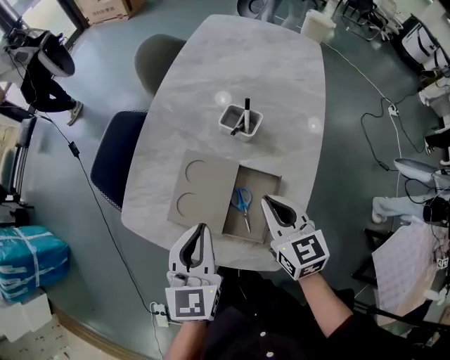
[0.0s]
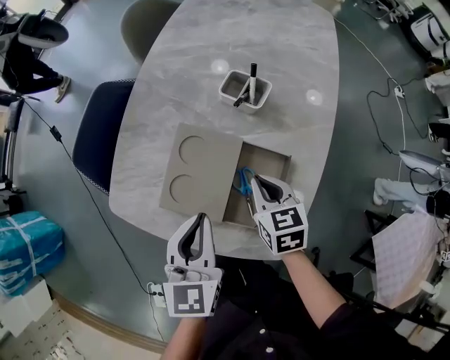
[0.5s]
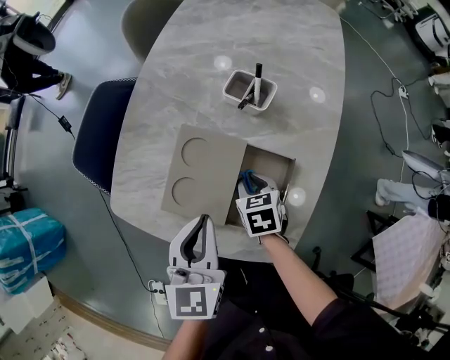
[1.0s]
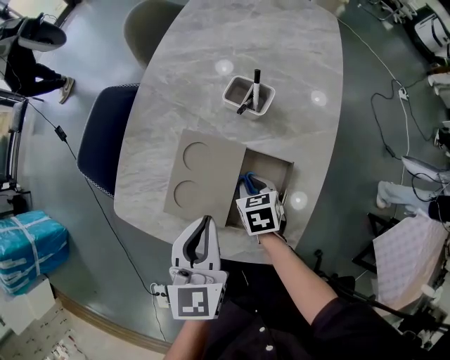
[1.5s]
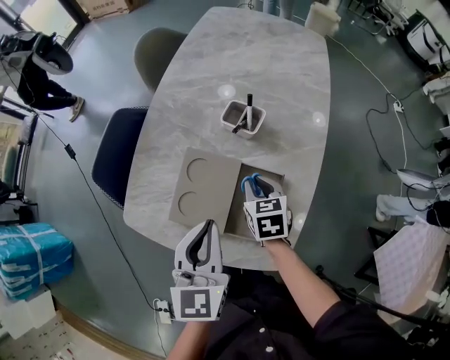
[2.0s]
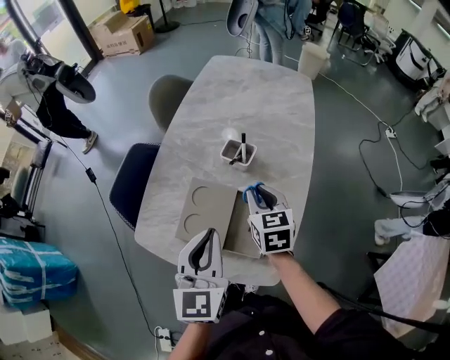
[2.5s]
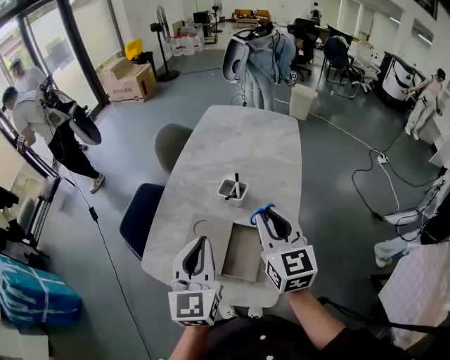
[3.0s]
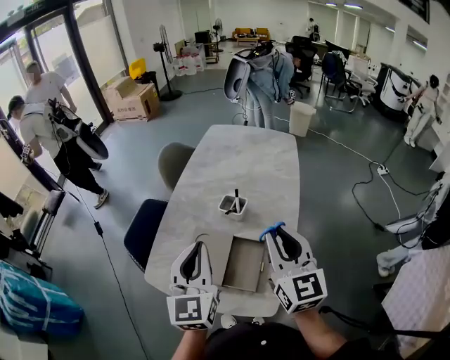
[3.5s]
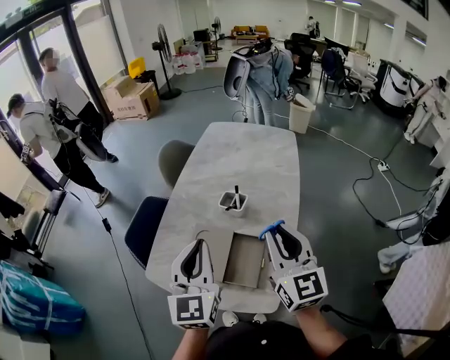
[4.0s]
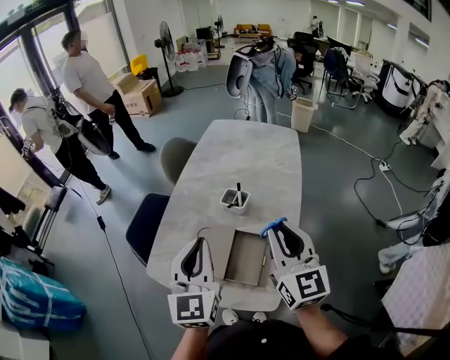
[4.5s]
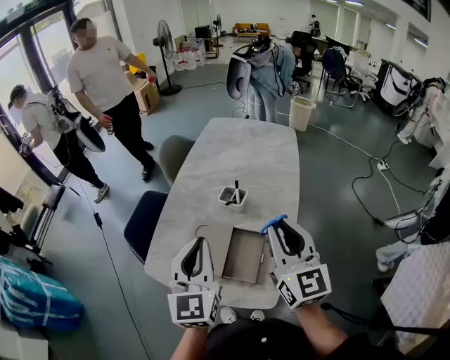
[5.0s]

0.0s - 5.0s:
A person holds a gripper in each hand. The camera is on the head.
0.0s - 2.5s: The right gripper is displaced forward by approximately 5 cm, and moves about 20 cm downward and comes back; the left gripper is displaced upward by some 10 cm.
2.5s - 5.0s: The left gripper heads upward, covering roughly 10 cm. The right gripper is displaced upward and backward by some 25 cm, and tips its fingers upward by some 40 degrees.

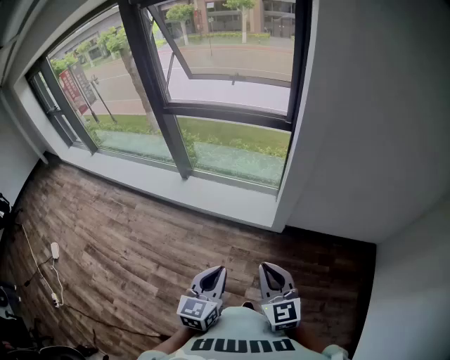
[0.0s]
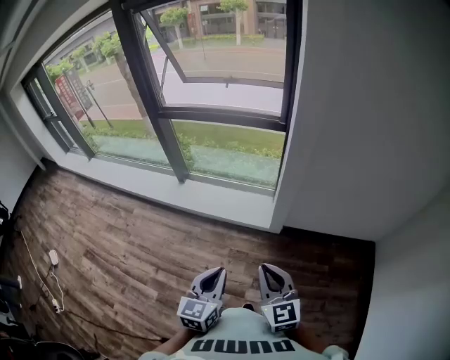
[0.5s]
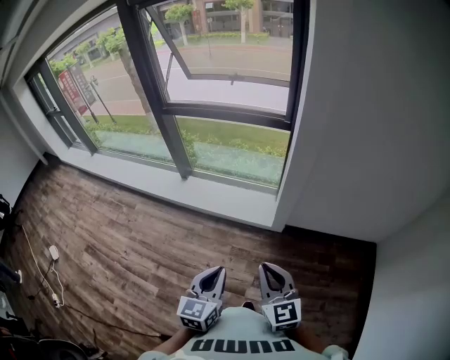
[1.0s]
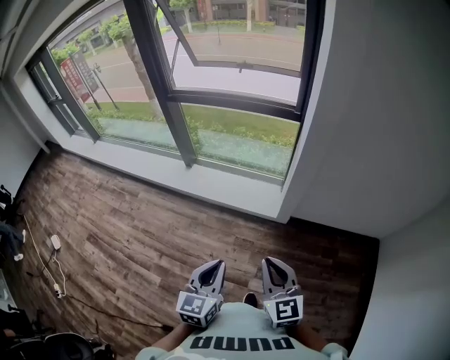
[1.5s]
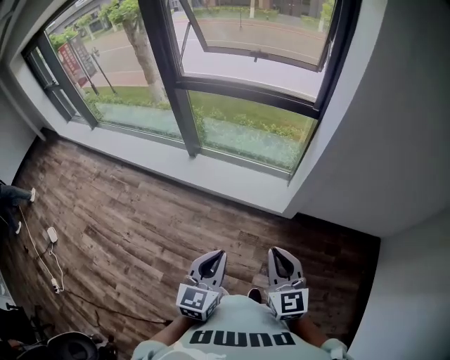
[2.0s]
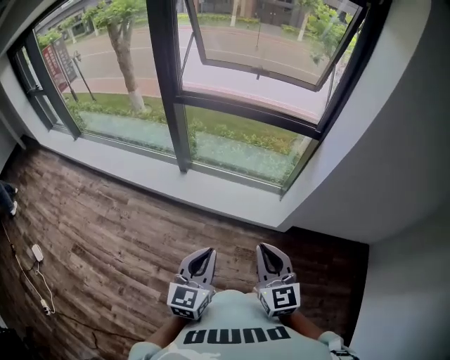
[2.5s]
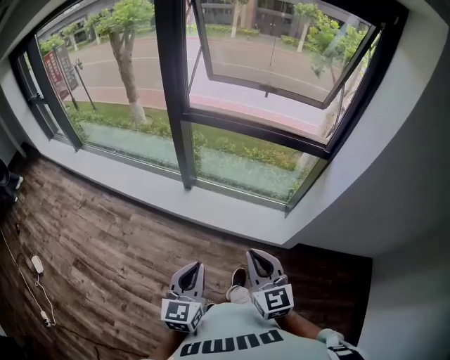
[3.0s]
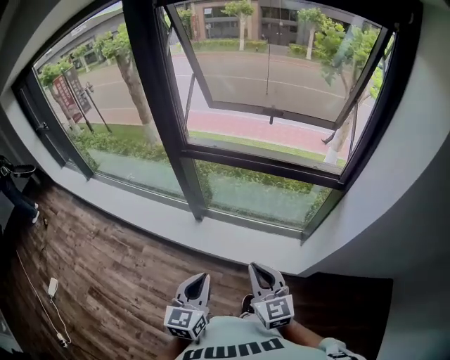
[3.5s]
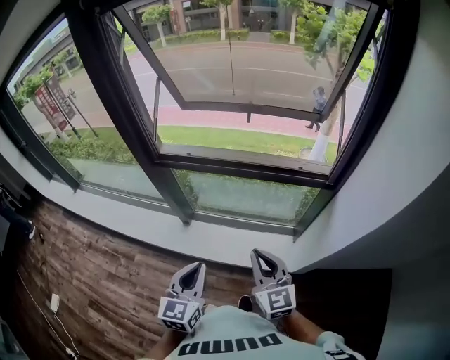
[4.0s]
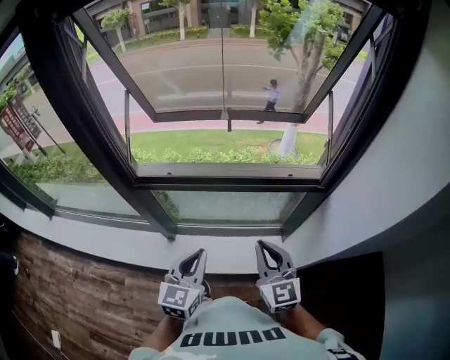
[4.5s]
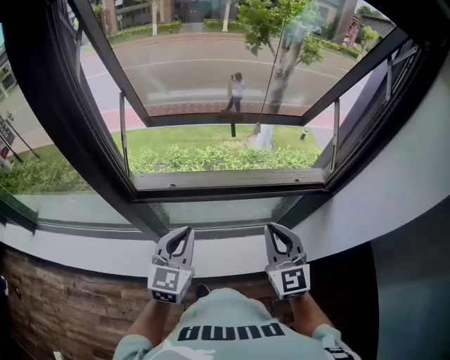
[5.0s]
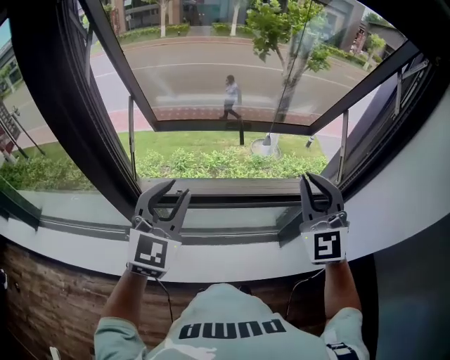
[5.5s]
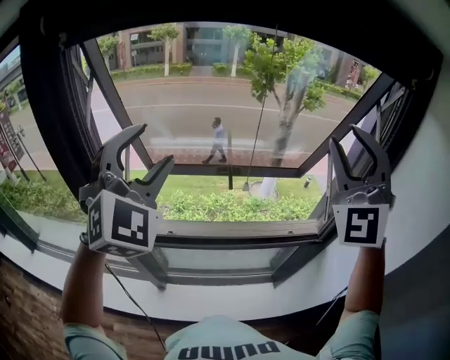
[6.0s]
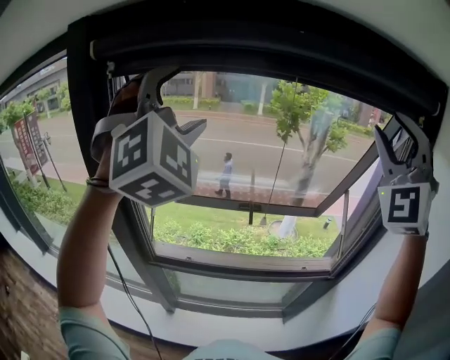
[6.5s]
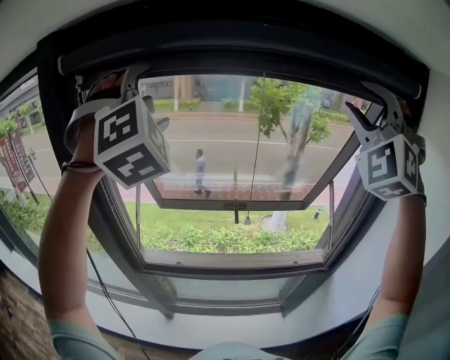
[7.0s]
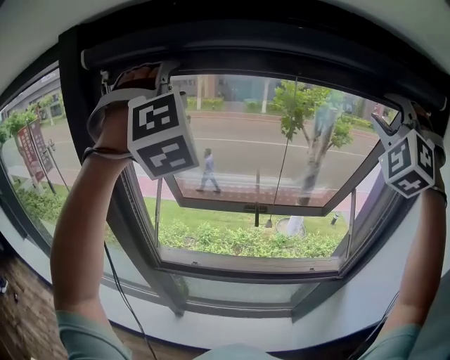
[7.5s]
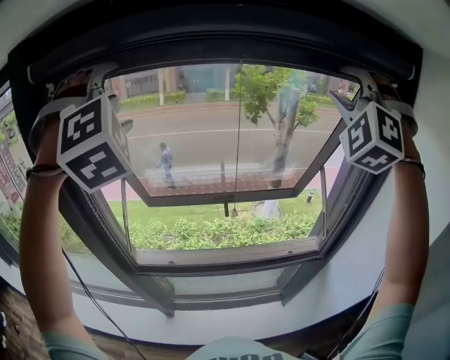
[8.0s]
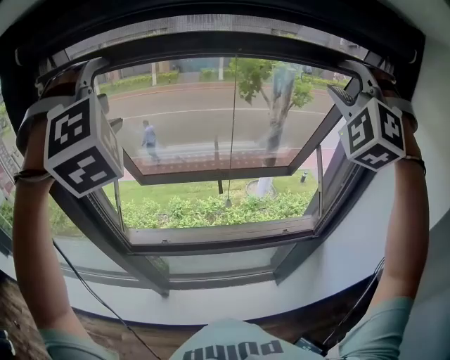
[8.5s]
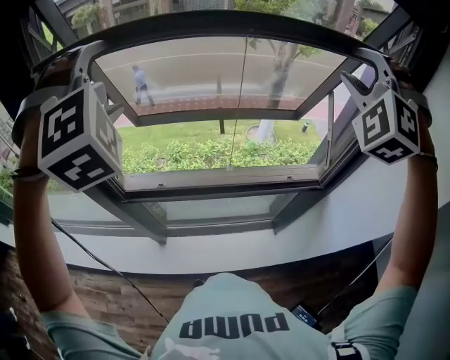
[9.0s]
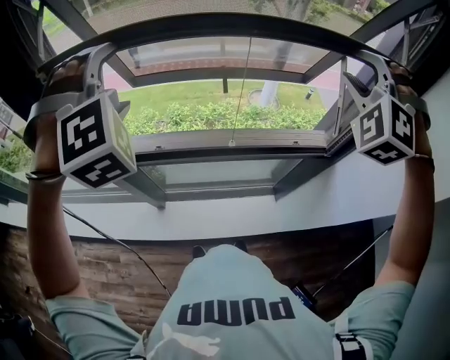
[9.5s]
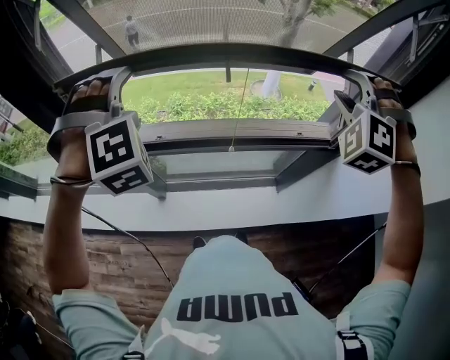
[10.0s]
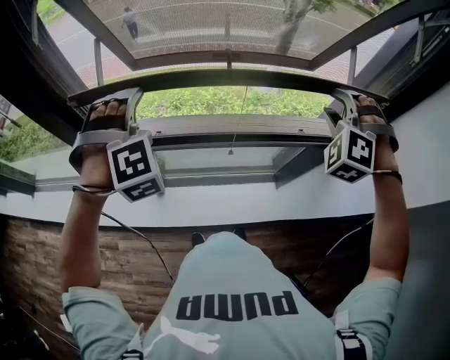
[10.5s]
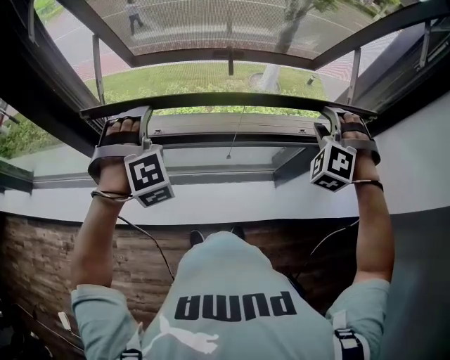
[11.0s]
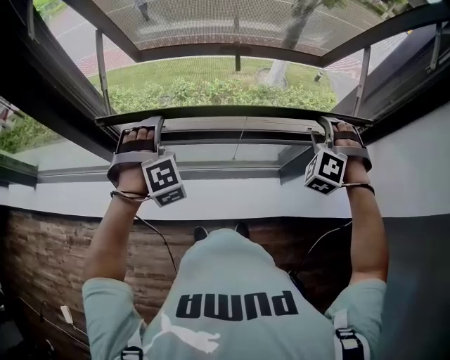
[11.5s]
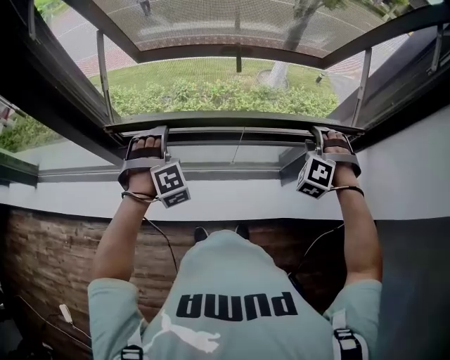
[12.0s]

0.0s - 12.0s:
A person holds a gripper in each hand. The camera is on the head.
0.0s - 2.0s: The two grippers go approximately 10 cm to the left and forward.
2.0s - 4.0s: The two grippers travel together, forward, approximately 50 cm.
4.0s - 6.0s: The right gripper is displaced upward and forward by some 50 cm, rotates around the line of its fingers by some 60 degrees, counterclockwise from behind, and opens its fingers. Meanwhile the left gripper is displaced forward, upward and to the left by roughly 60 cm, twists roughly 60 degrees clockwise, seen from behind, and opens.
6.0s - 8.0s: The right gripper shifts about 15 cm upward, forward and to the right, and changes its angle by about 40 degrees. The left gripper moves upward and forward, some 15 cm, and changes its angle by approximately 40 degrees.
8.0s - 10.0s: Both grippers travel together downward, approximately 35 cm. The right gripper angles its fingers downward, by some 30 degrees, while the left gripper rotates approximately 30 degrees.
10.0s - 12.0s: The grippers both shift downward by some 25 cm.

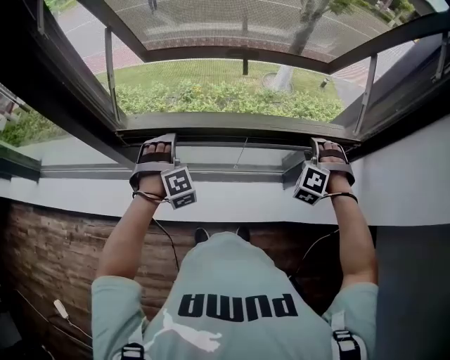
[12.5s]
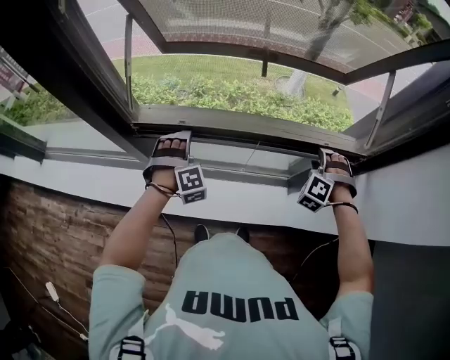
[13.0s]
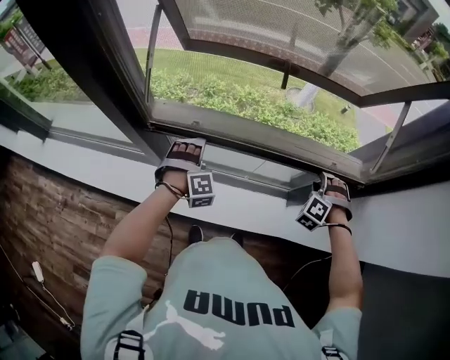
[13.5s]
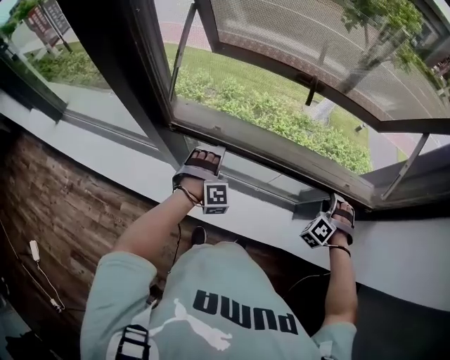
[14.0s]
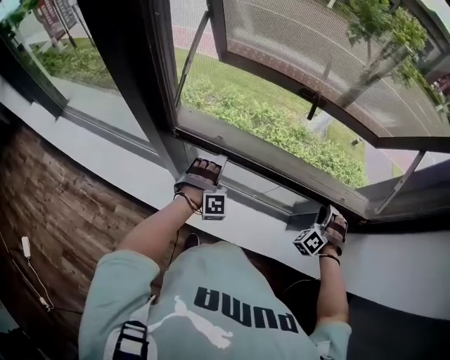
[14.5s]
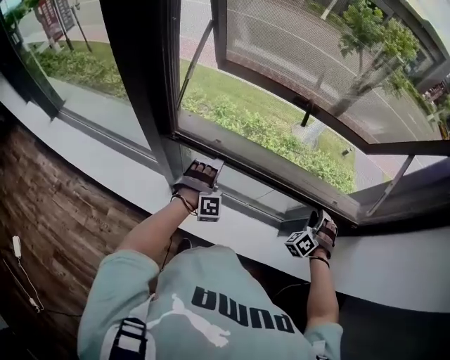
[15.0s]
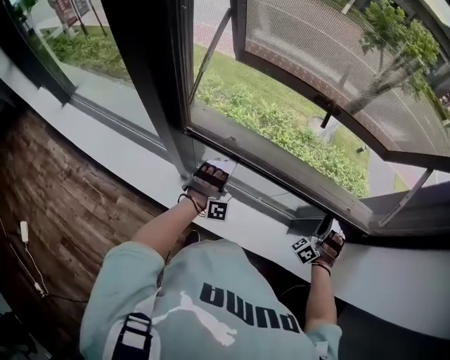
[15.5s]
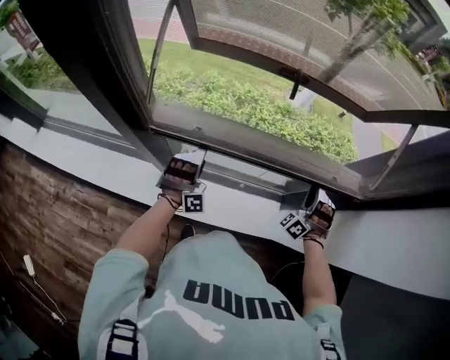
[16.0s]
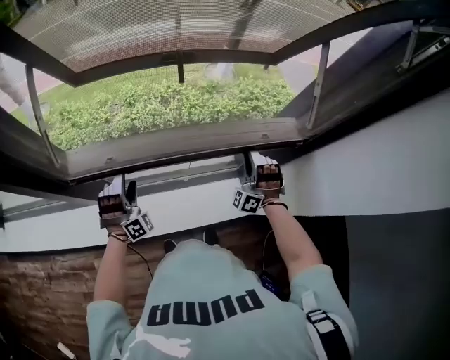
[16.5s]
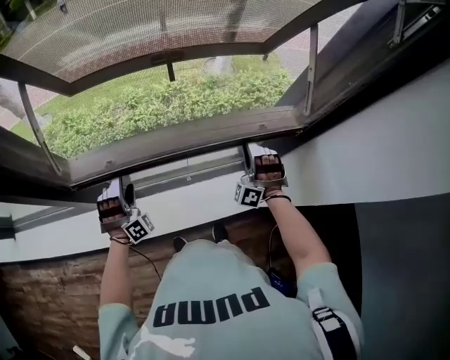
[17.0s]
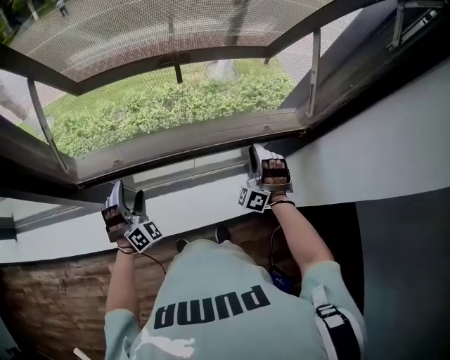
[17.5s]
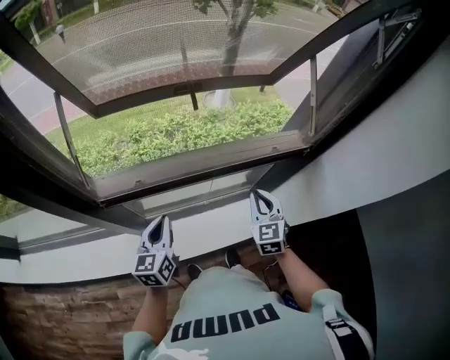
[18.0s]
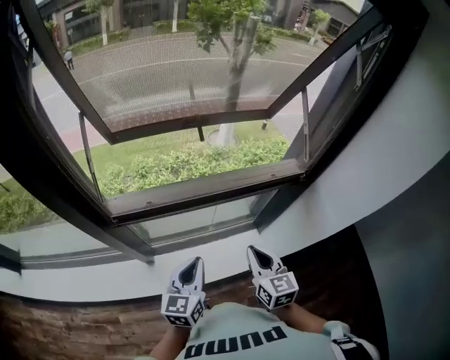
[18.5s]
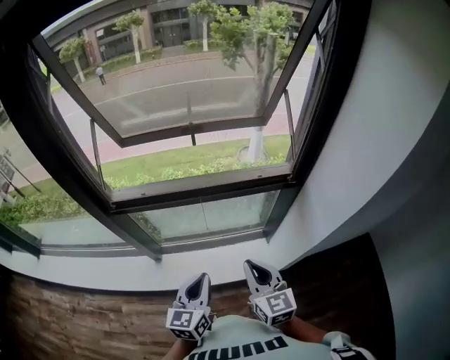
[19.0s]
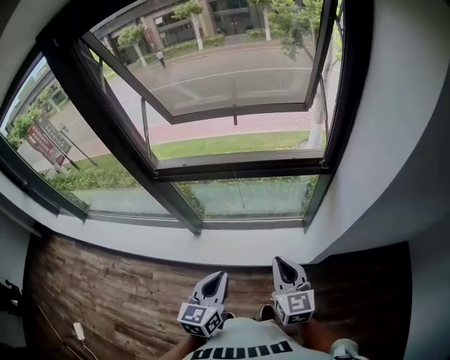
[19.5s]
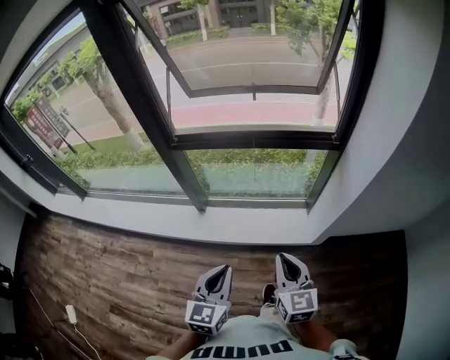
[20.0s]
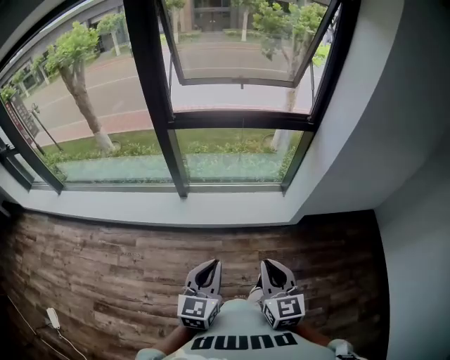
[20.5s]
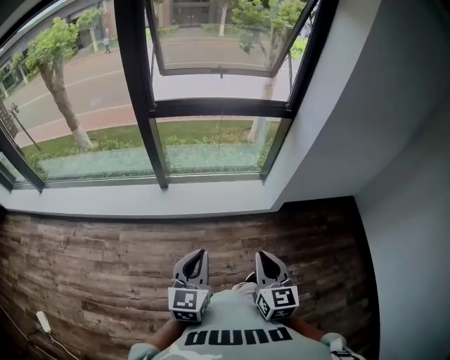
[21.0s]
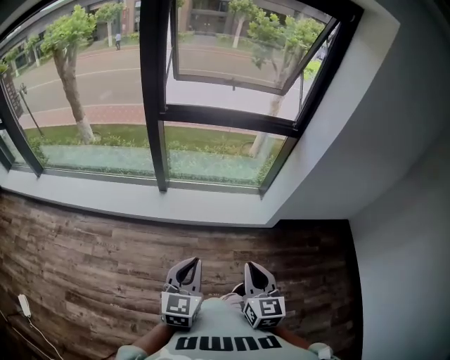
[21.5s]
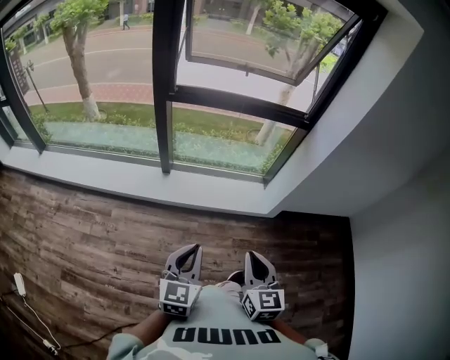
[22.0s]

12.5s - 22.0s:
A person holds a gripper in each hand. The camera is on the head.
12.5s - 14.5s: The two grippers go about 5 cm downward.
14.5s - 16.5s: The right gripper turns by approximately 20 degrees.
16.5s - 18.0s: The left gripper moves upward and backward, about 15 cm, rotates around the line of its fingers by about 90 degrees, counterclockwise from behind, and closes up. Meanwhile the right gripper is displaced backward, to the left and upward by roughly 15 cm, and twists about 70 degrees clockwise, seen from behind.
18.0s - 20.0s: The two grippers travel together, backward, about 50 cm. The right gripper changes its angle by some 30 degrees.
20.0s - 22.0s: The left gripper travels backward and to the left by some 25 cm, while the right gripper shifts approximately 25 cm backward.
